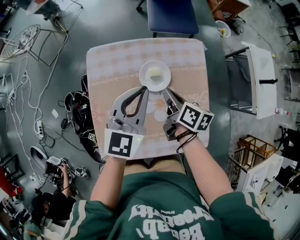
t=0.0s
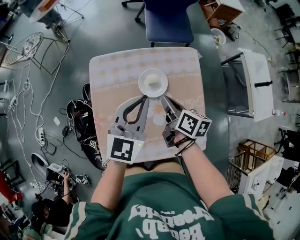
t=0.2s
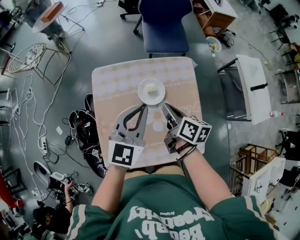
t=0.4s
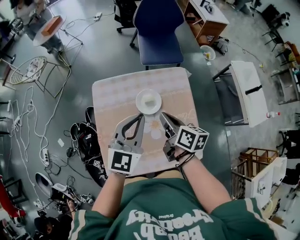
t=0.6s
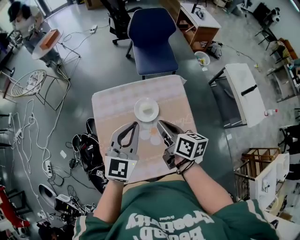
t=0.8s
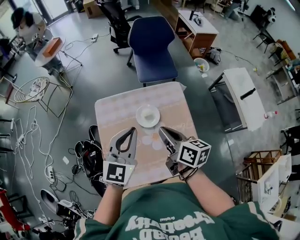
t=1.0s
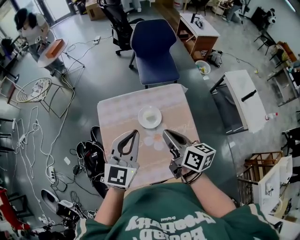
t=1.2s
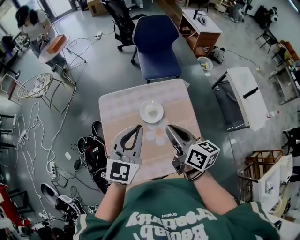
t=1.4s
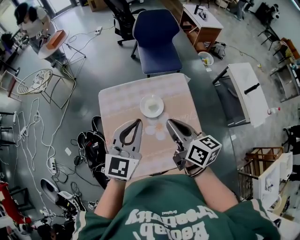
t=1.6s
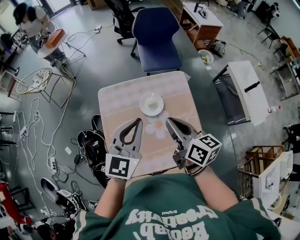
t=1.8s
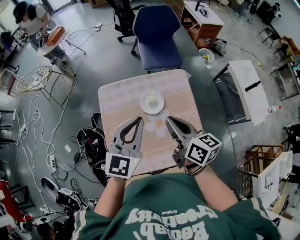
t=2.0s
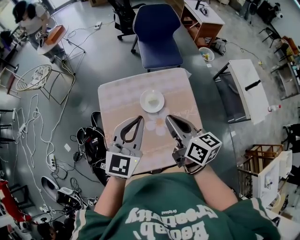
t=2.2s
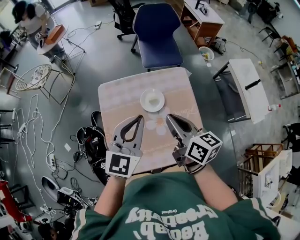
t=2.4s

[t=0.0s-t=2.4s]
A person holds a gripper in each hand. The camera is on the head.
t=0.0s to t=1.2s: The left gripper travels upward and backward by some 15 cm, while the right gripper moves upward, about 20 cm.
t=1.2s to t=2.4s: The grippers stay close to where they were, moving slightly.

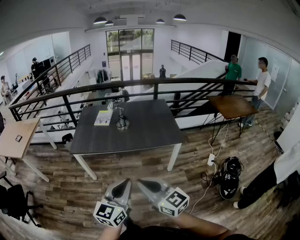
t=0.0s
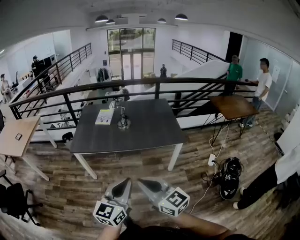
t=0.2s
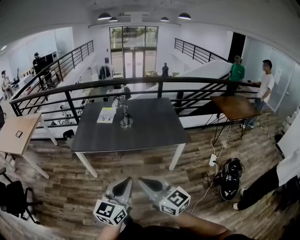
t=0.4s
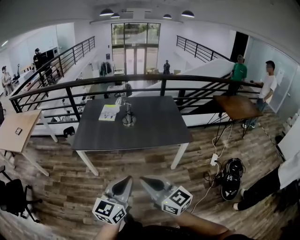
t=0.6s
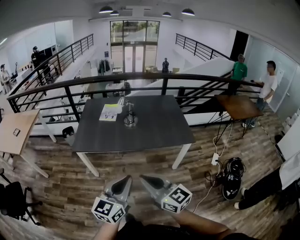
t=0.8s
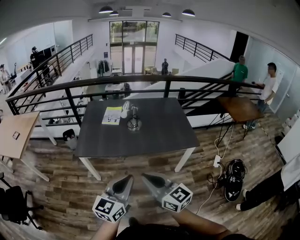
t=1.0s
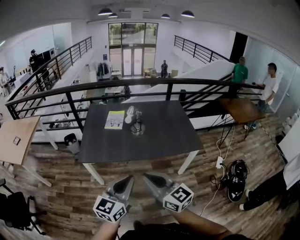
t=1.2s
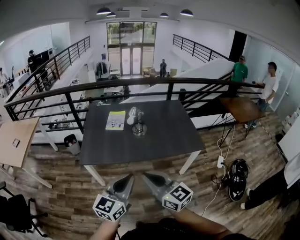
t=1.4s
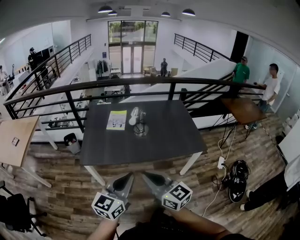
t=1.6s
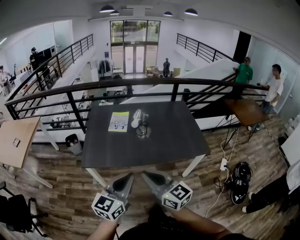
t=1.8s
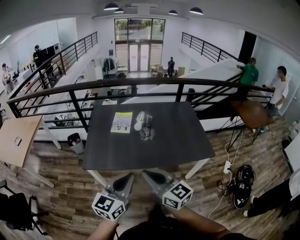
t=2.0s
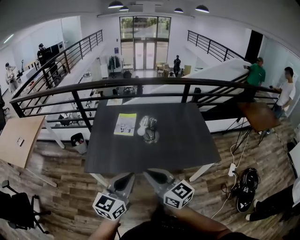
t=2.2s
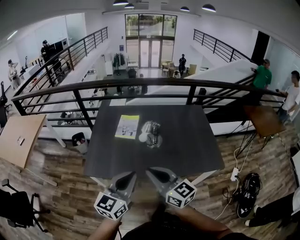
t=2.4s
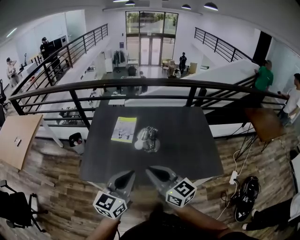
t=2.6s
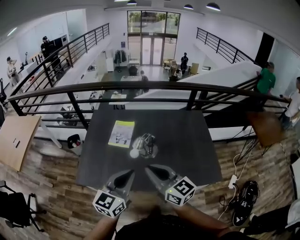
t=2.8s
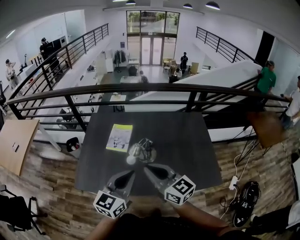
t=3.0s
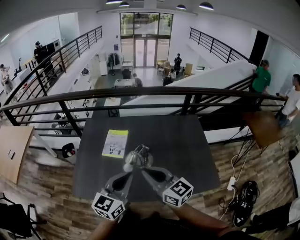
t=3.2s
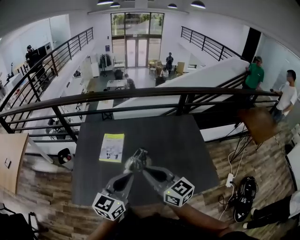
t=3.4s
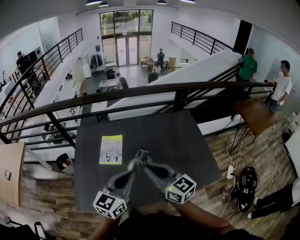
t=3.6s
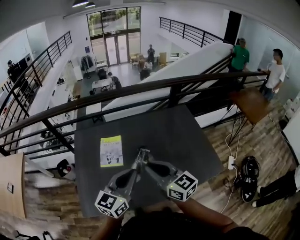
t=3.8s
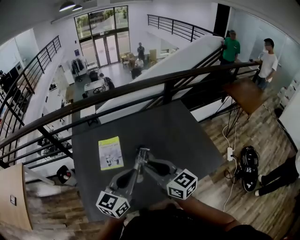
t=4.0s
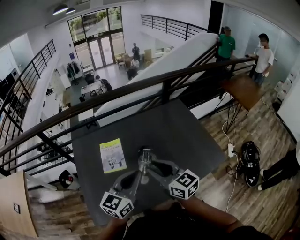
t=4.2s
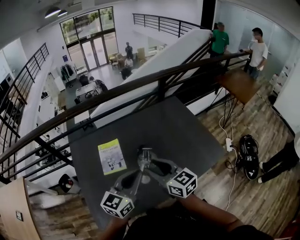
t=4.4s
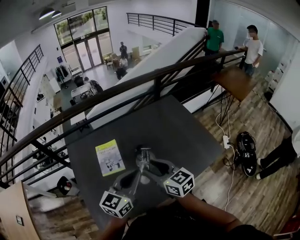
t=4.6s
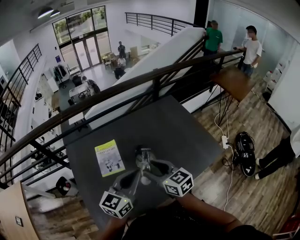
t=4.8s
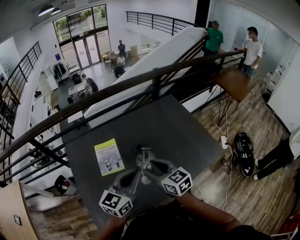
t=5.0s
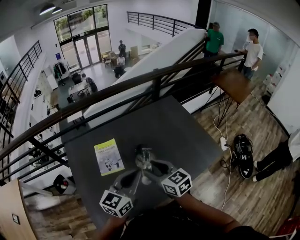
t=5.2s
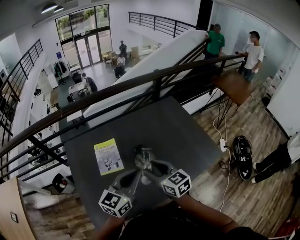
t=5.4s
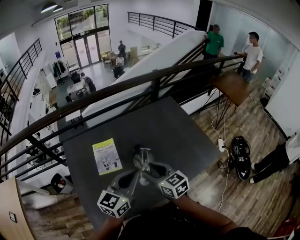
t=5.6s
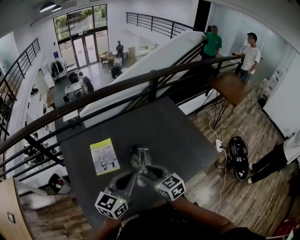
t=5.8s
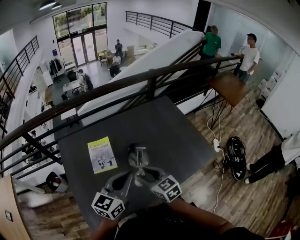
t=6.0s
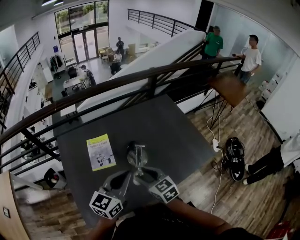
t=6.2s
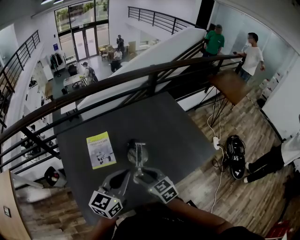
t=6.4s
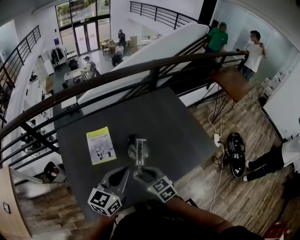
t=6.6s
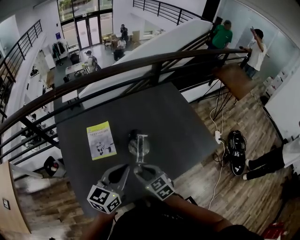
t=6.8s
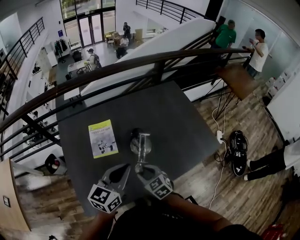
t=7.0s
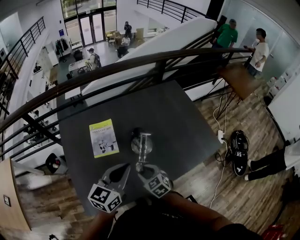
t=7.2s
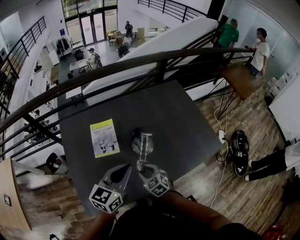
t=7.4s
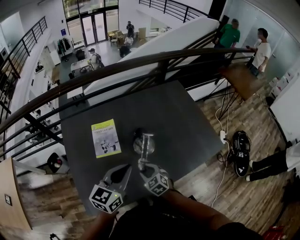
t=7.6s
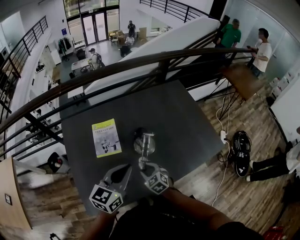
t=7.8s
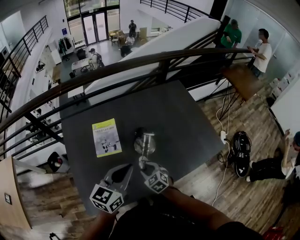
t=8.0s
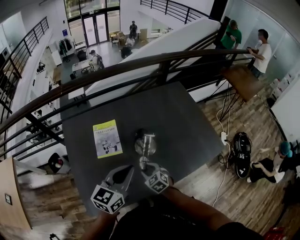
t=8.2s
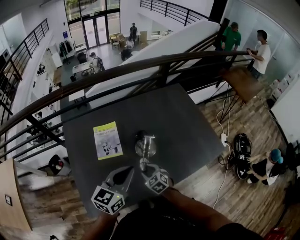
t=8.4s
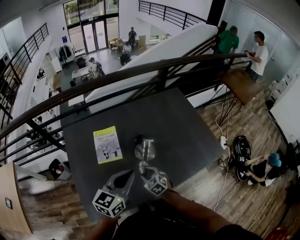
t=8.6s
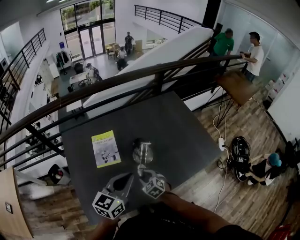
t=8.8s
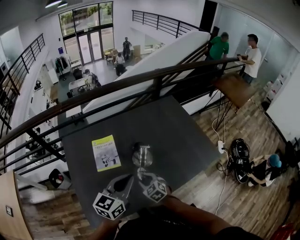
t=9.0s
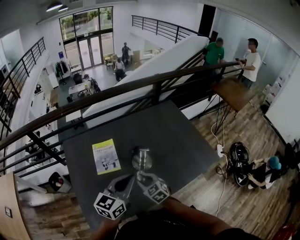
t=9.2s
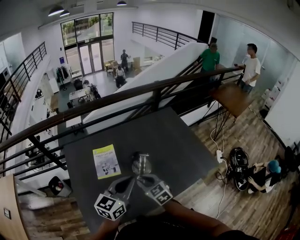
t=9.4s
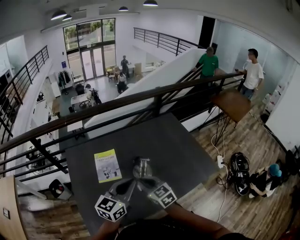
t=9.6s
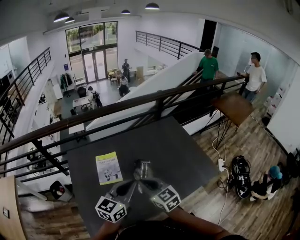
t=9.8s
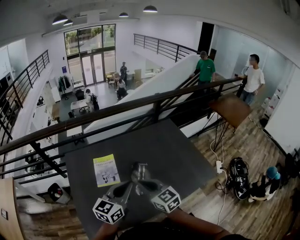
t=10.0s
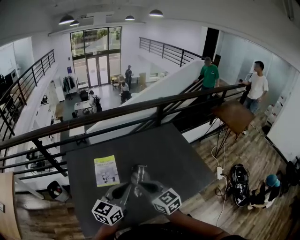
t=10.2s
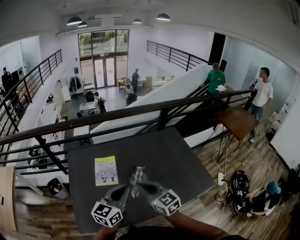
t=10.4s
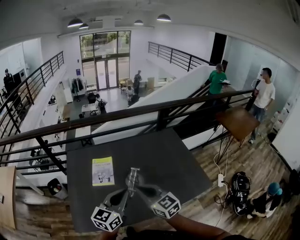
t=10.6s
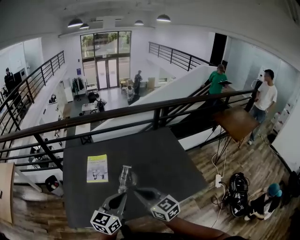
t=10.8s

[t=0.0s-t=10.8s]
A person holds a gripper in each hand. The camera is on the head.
t=0.0s to t=1.6s: The two grippers go some 25 cm forward and to the left.
t=1.6s to t=3.0s: The two grippers go about 30 cm forward.
t=3.0s to t=4.6s: The left gripper ends up about 15 cm from where it was, and rotates some 30 degrees. The right gripper shifts by approximately 15 cm, turns by some 30 degrees, and opens.
t=4.6s to t=6.2s: The right gripper moves downward, some 10 cm.
t=6.2s to t=7.8s: The right gripper travels downward by approximately 20 cm, and rotates approximately 20 degrees.
t=7.8s to t=9.2s: The right gripper is displaced upward by approximately 10 cm.
t=9.2s to t=10.8s: The left gripper is displaced to the right and backward by roughly 10 cm. The right gripper shifts roughly 20 cm upward and to the right, turns by some 30 degrees, and closes.

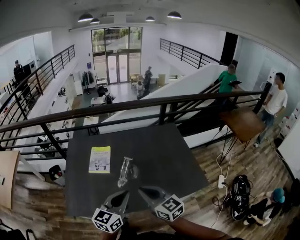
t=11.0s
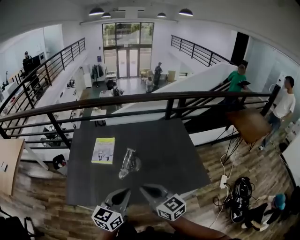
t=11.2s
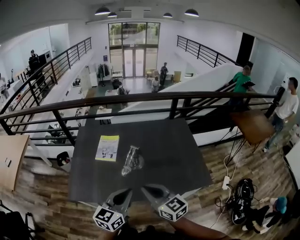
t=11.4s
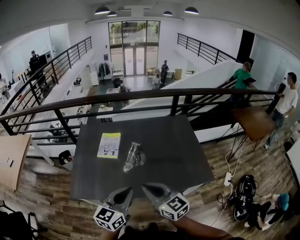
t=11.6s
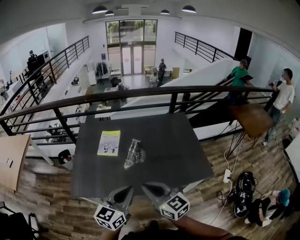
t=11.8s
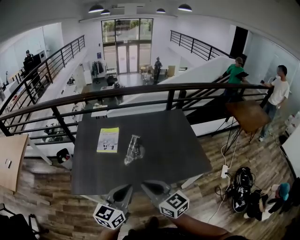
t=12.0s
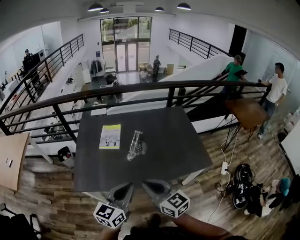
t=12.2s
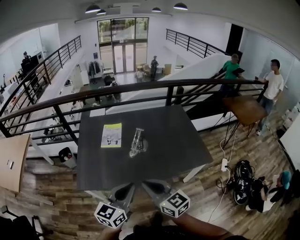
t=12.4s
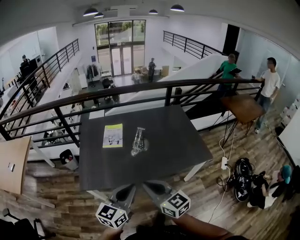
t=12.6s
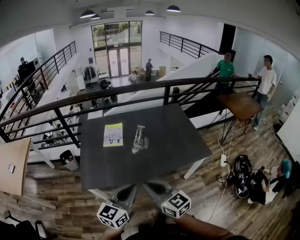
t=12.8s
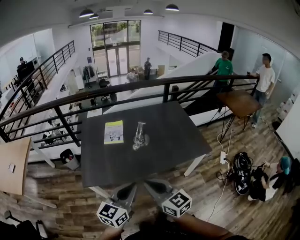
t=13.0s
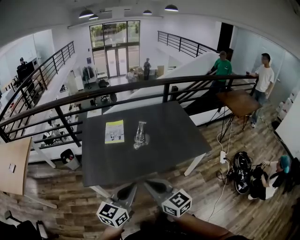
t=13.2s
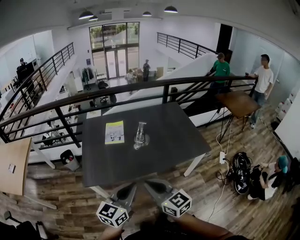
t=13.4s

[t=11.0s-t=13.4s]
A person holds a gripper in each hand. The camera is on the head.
t=11.0s to t=12.2s: The right gripper shifts approximately 15 cm backward and to the left. Meanwhile the left gripper moves backward, some 15 cm.
t=12.2s to t=13.4s: The grippers both shift backward and to the left by approximately 10 cm.

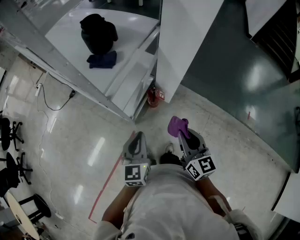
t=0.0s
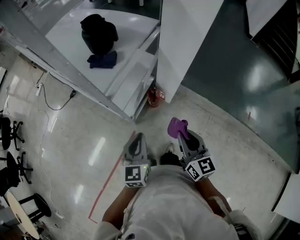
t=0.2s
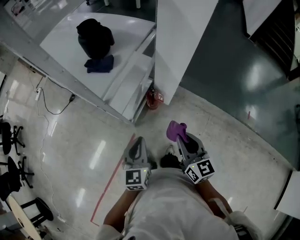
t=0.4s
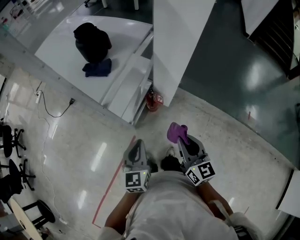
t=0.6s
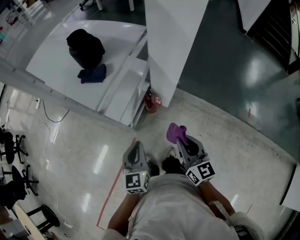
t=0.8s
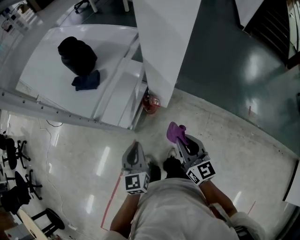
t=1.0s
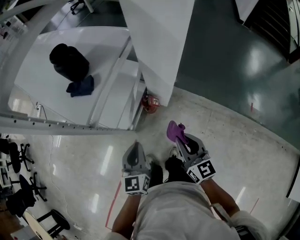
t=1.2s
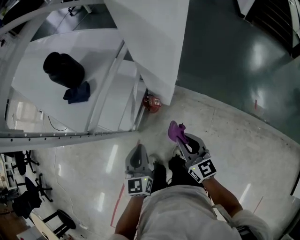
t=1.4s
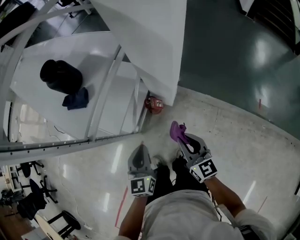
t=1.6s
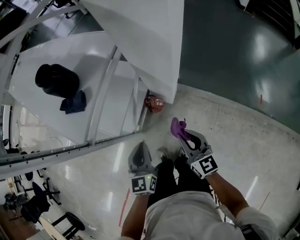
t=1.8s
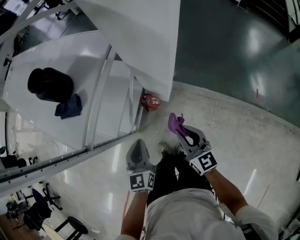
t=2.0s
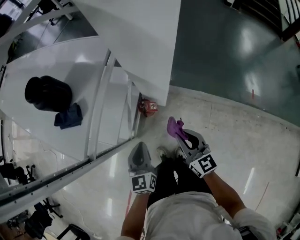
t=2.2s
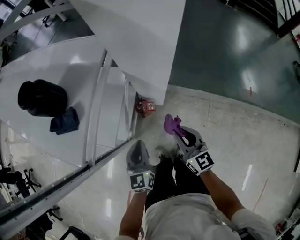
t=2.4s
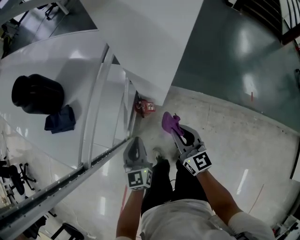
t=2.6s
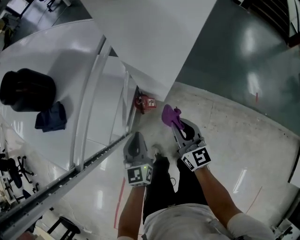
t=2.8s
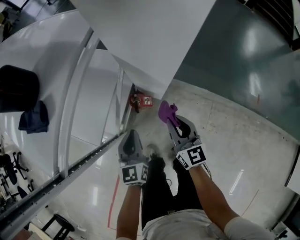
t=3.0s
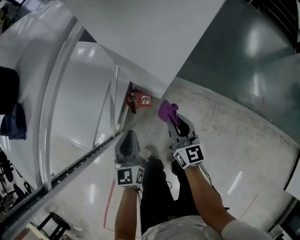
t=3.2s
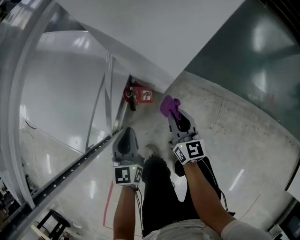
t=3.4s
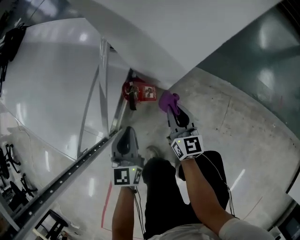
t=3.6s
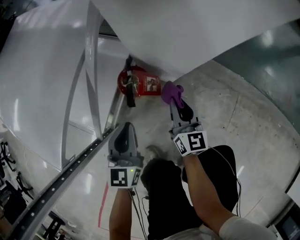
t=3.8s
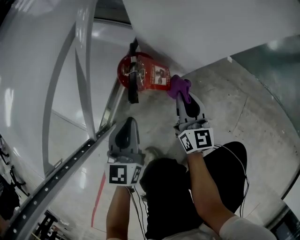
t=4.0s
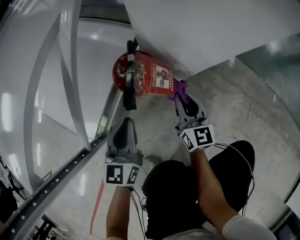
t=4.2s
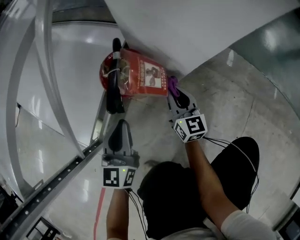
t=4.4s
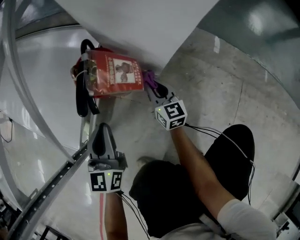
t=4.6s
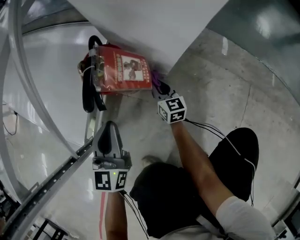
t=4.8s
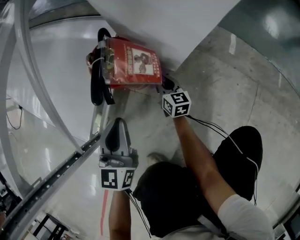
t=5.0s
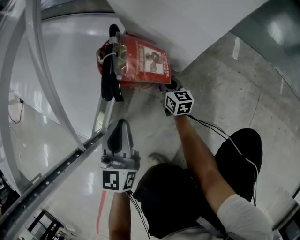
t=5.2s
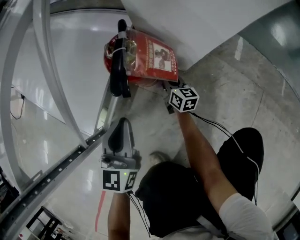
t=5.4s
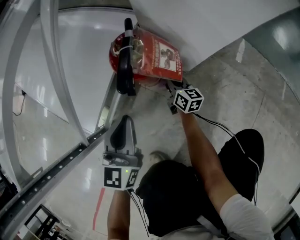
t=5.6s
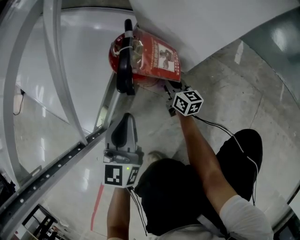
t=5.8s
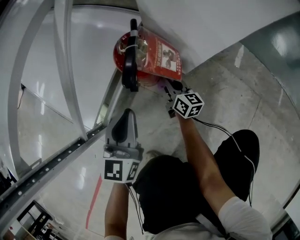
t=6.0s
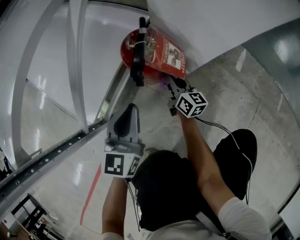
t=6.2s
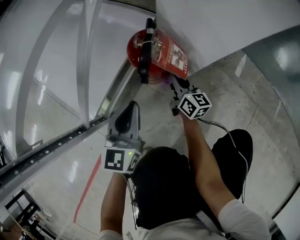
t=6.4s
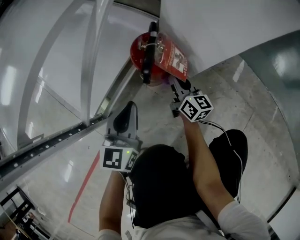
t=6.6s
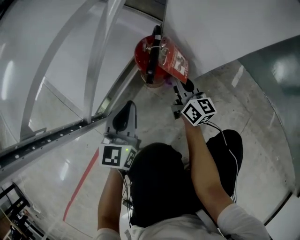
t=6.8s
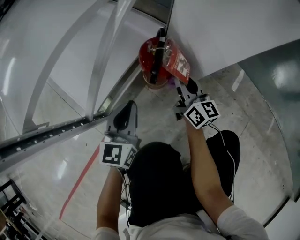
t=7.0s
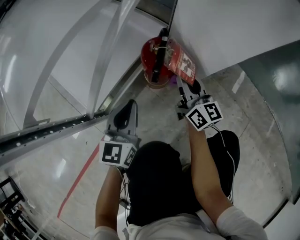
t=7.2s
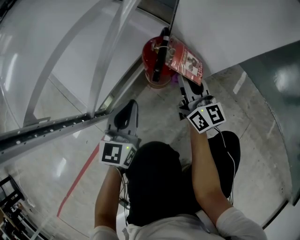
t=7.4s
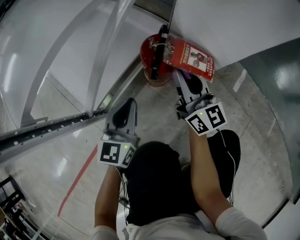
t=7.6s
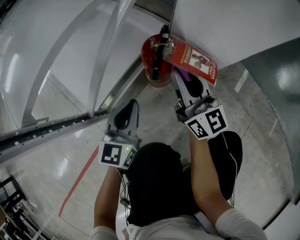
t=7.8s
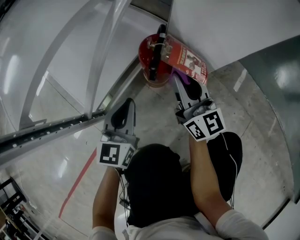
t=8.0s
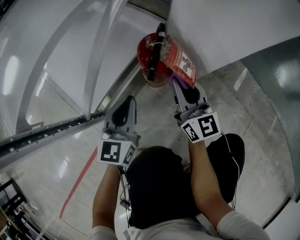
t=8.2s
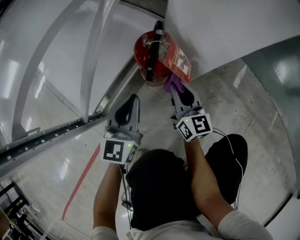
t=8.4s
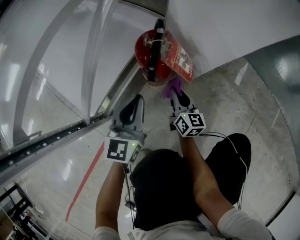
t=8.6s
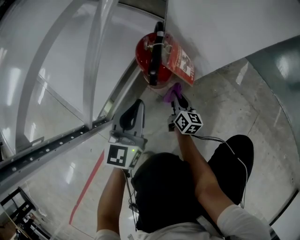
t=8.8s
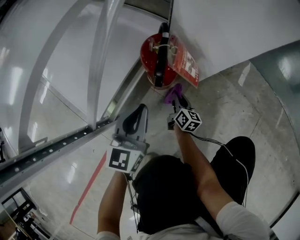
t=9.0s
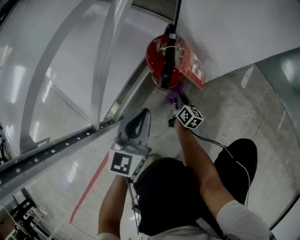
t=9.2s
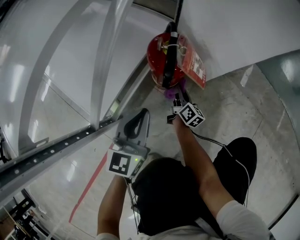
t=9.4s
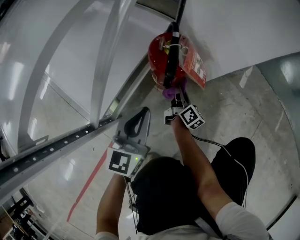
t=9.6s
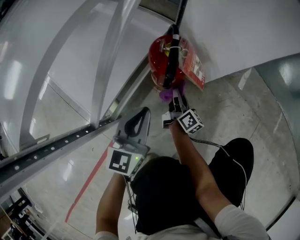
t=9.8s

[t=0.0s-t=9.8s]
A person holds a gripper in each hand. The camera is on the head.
t=0.0s to t=1.4s: Both grippers travel together to the right and forward, roughly 10 cm.
t=1.4s to t=2.8s: The two grippers go about 20 cm forward and downward.
t=2.8s to t=4.2s: Both grippers travel together downward, some 50 cm.
t=4.2s to t=5.6s: The right gripper travels downward by about 20 cm, and changes its angle by roughly 20 degrees.
t=5.6s to t=7.0s: The right gripper travels upward by roughly 20 cm.
t=7.0s to t=8.4s: The right gripper moves about 10 cm upward and comes back.
t=8.4s to t=9.8s: The right gripper goes approximately 15 cm downward, and rotates around the line of its fingers by approximately 40 degrees, clockwise from behind.
